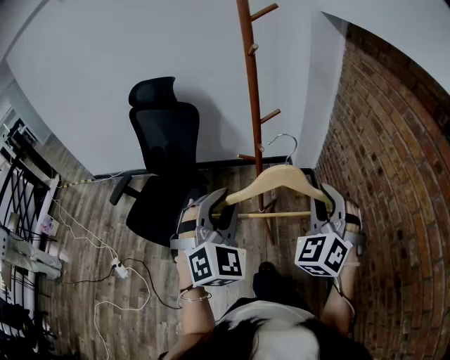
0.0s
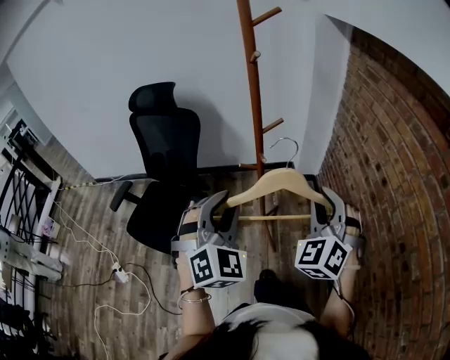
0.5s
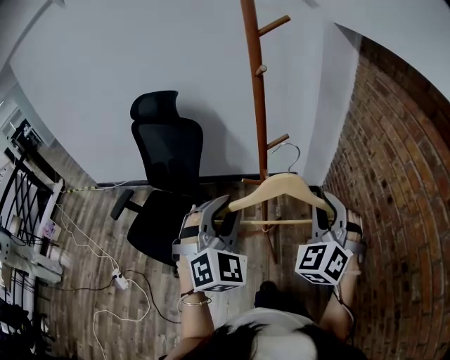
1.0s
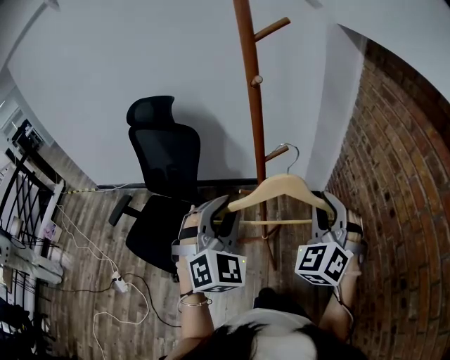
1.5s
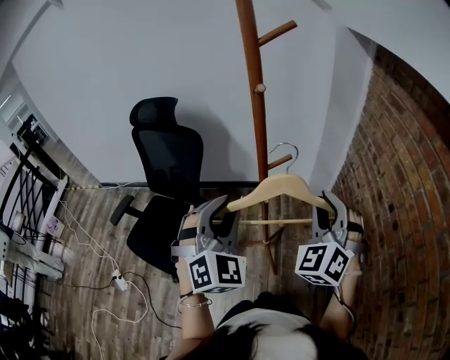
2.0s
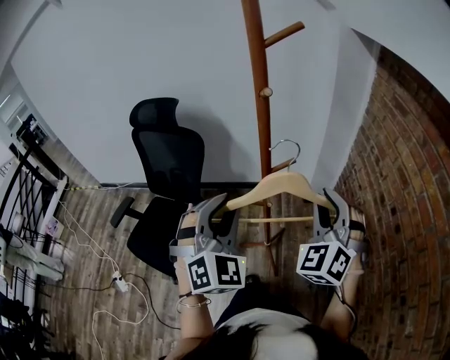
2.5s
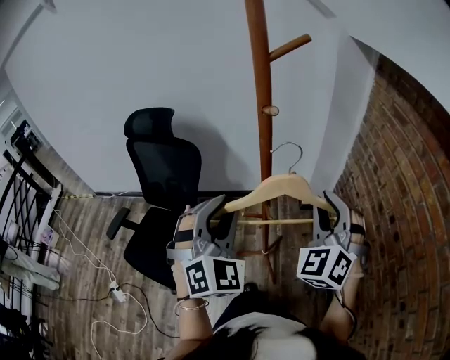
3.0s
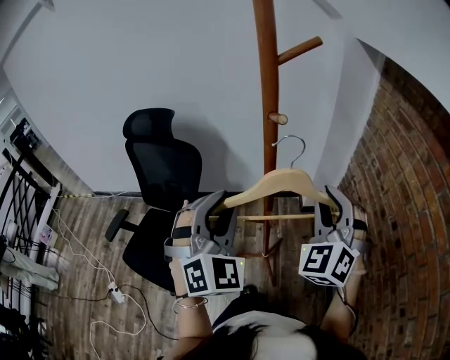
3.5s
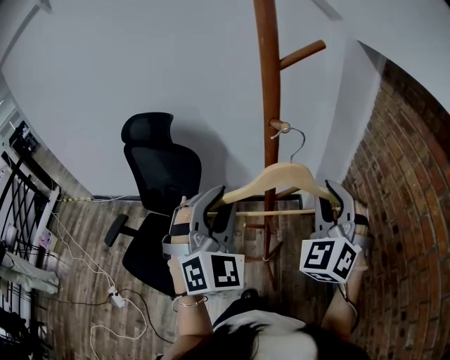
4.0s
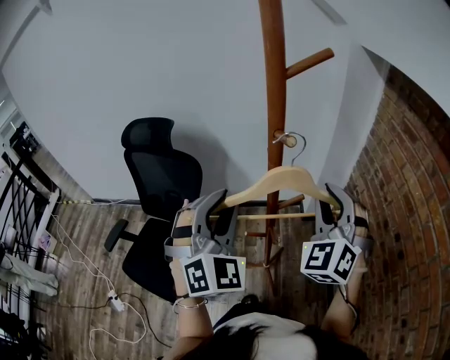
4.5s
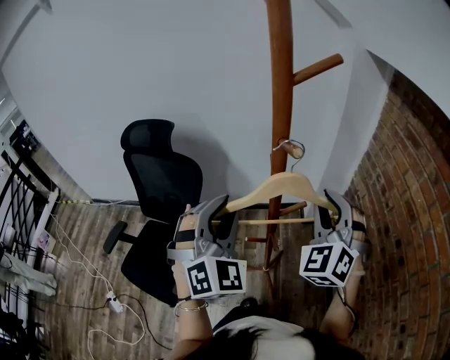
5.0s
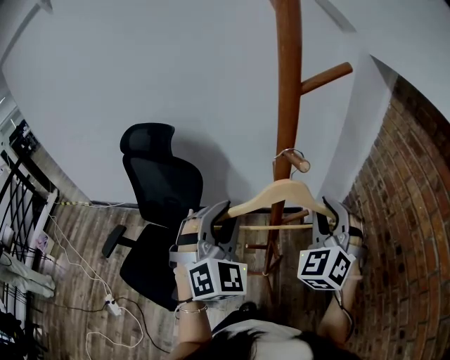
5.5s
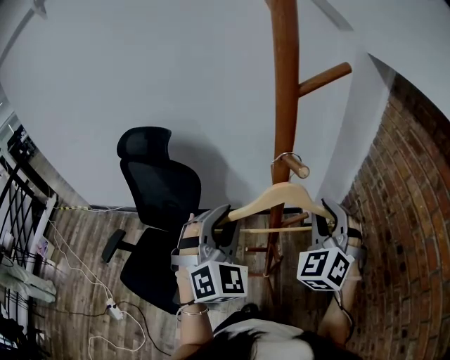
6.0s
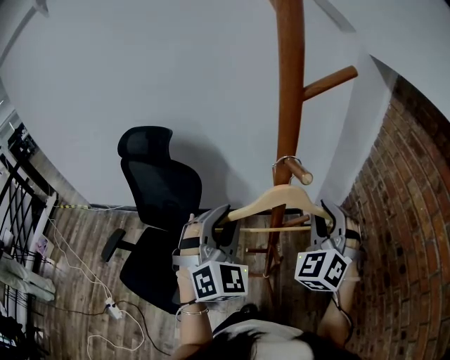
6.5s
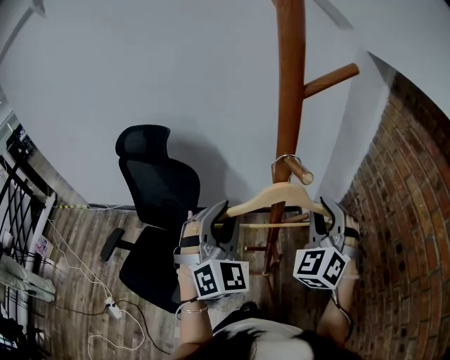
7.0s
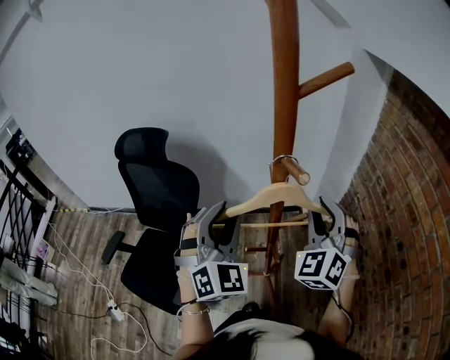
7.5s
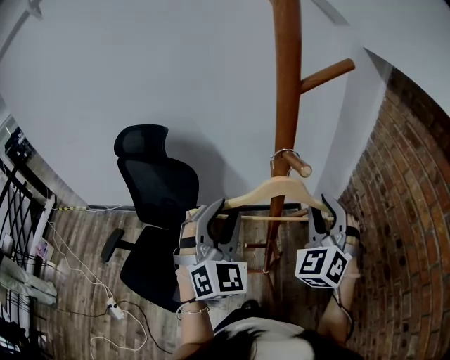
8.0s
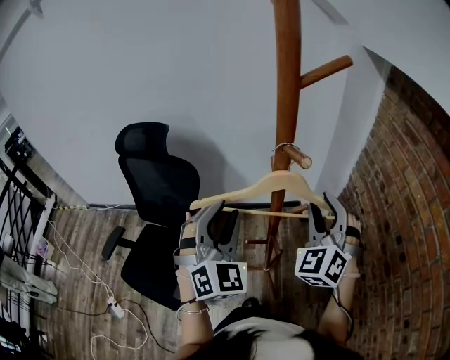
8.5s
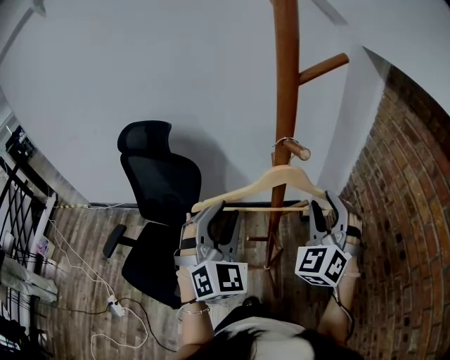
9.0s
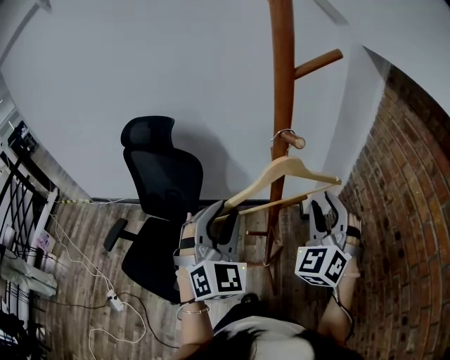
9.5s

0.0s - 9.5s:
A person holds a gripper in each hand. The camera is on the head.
0.0s - 2.0s: The two grippers go roughly 15 cm forward.
2.0s - 4.0s: The grippers both shift forward and upward by about 10 cm.
4.0s - 5.5s: The two grippers go some 5 cm forward.
5.5s - 7.5s: There are only small adjustments of the grippers.
7.5s - 9.5s: The left gripper is displaced backward by some 5 cm.

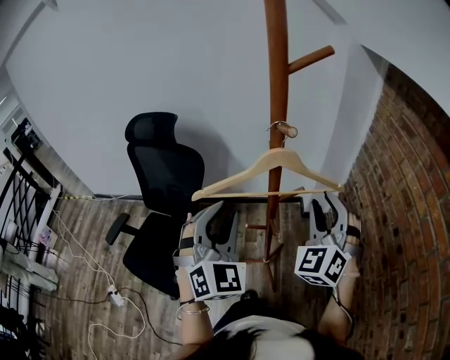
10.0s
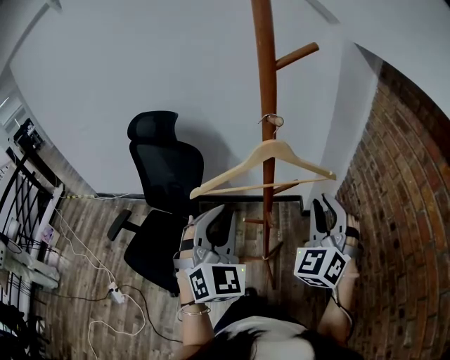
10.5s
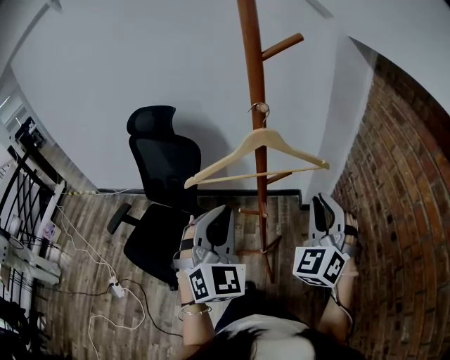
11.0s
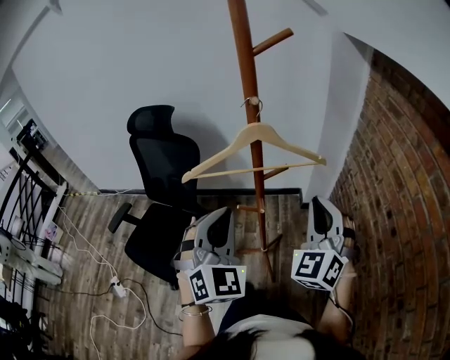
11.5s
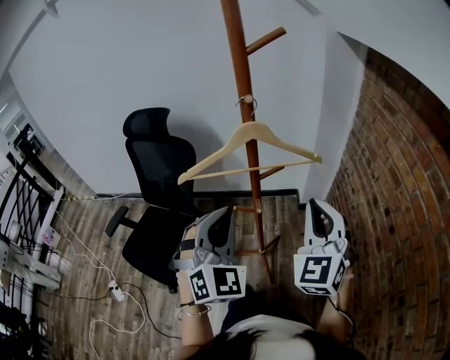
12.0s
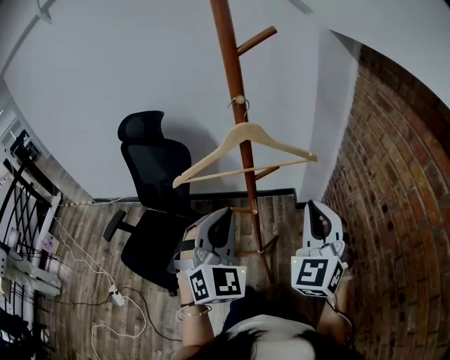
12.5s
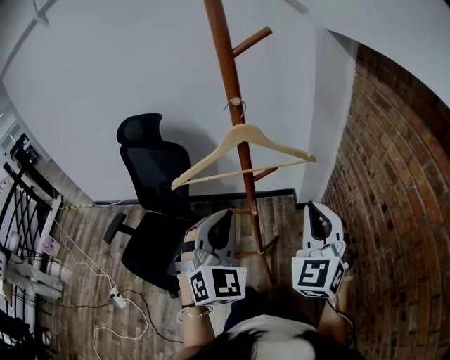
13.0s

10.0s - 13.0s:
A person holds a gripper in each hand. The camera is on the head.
10.0s - 11.5s: The left gripper goes roughly 10 cm backward and to the right, and closes up, while the right gripper shifts roughly 10 cm backward, and closes its fingers.
11.5s - 13.0s: The grippers make only small movements.

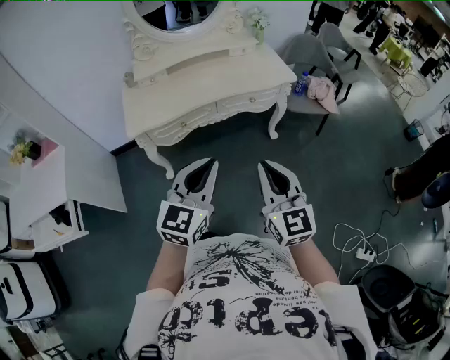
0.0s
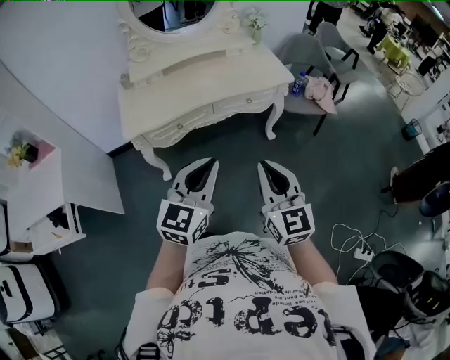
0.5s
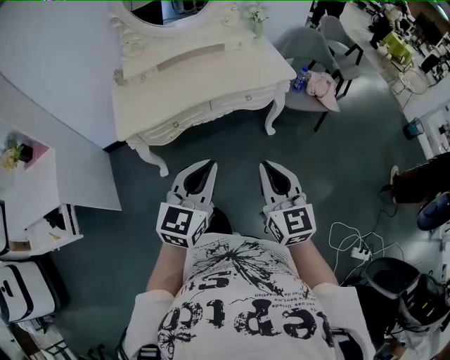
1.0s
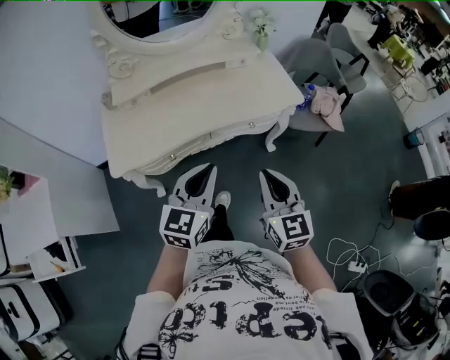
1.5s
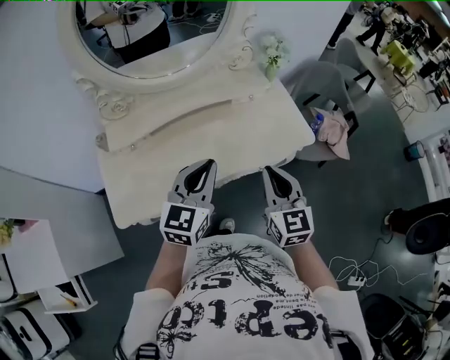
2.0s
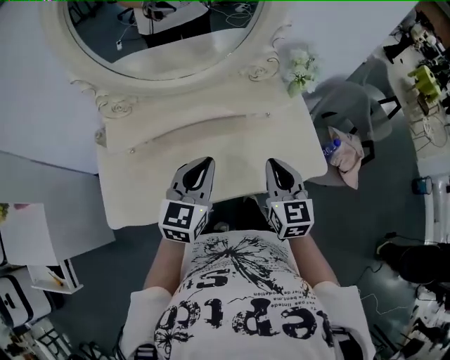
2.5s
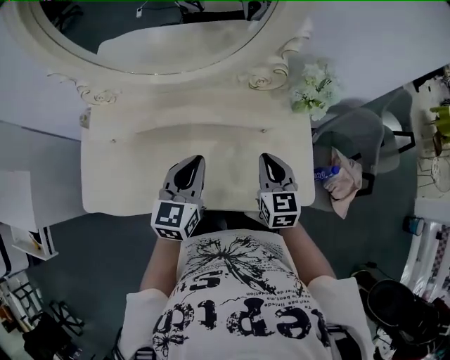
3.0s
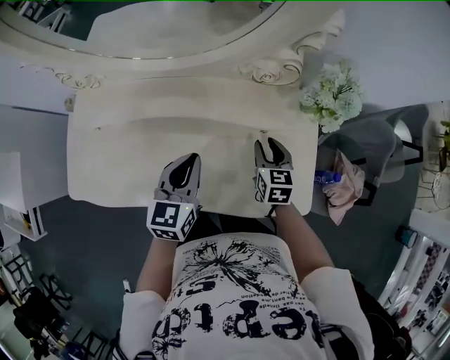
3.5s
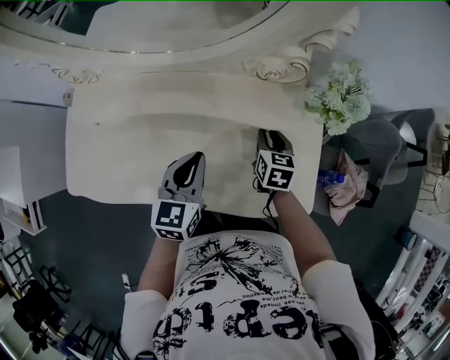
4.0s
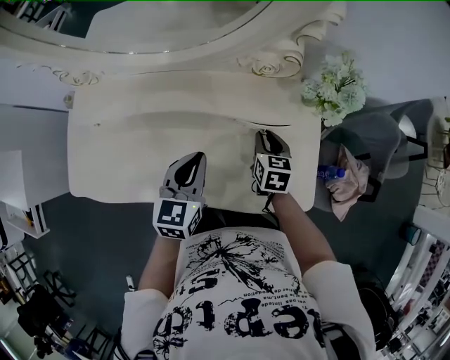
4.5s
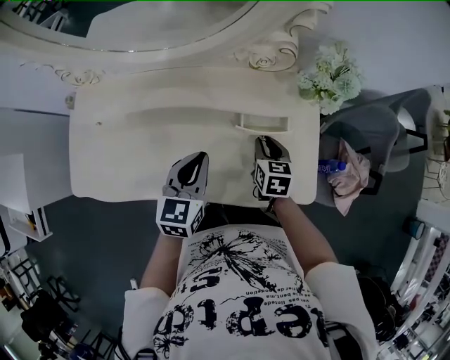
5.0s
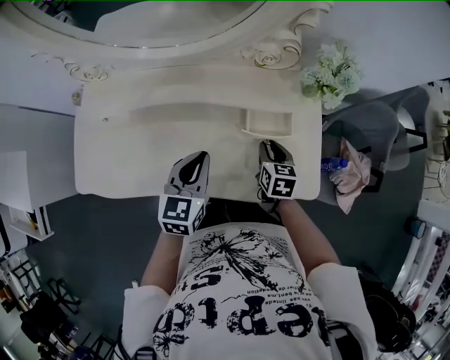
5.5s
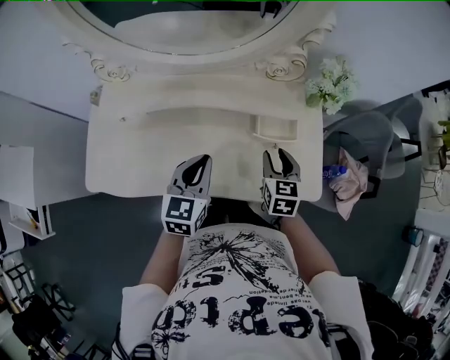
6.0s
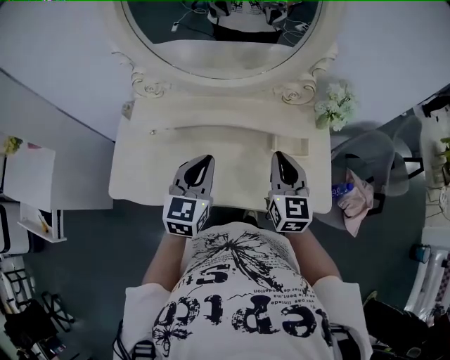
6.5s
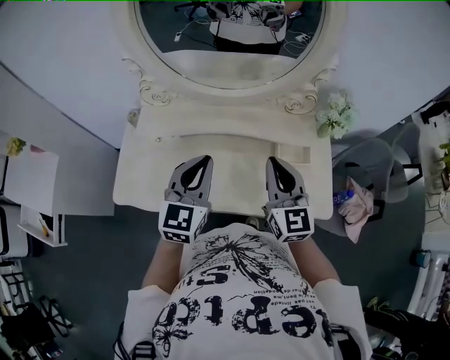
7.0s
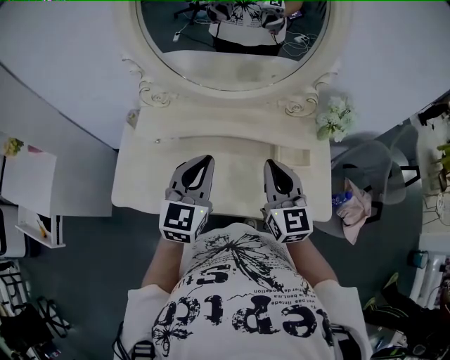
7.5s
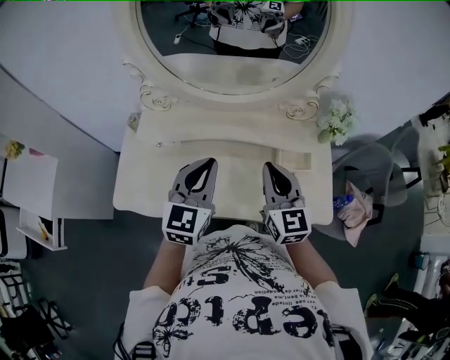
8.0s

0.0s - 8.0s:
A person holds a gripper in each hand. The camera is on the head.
0.0s - 2.0s: The two grippers travel together, forward, some 50 cm.
2.0s - 4.0s: The left gripper goes about 30 cm forward and downward, and swivels roughly 40 degrees, while the right gripper is displaced forward and downward by about 50 cm, rotates roughly 30 degrees, and opens its fingers.
4.0s - 6.0s: The right gripper moves backward and upward, some 15 cm, while the left gripper travels backward by about 5 cm.
6.0s - 8.0s: Both grippers travel together upward and to the left, approximately 20 cm. The right gripper changes its angle by about 30 degrees, and closes.

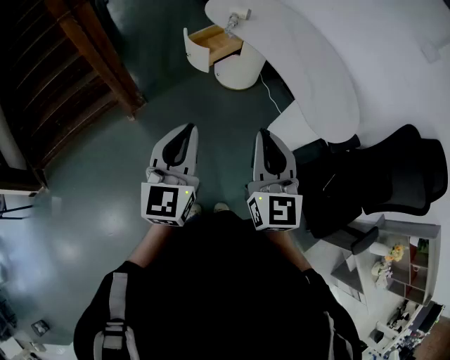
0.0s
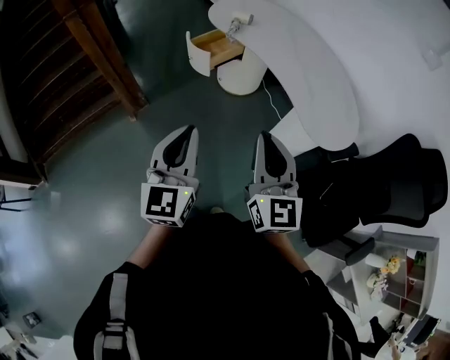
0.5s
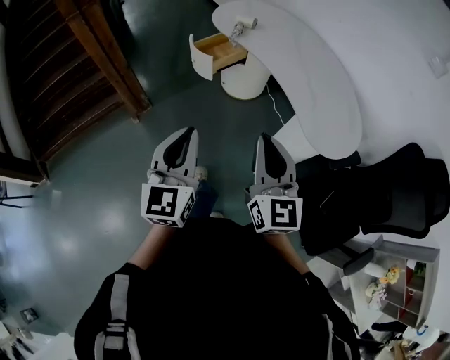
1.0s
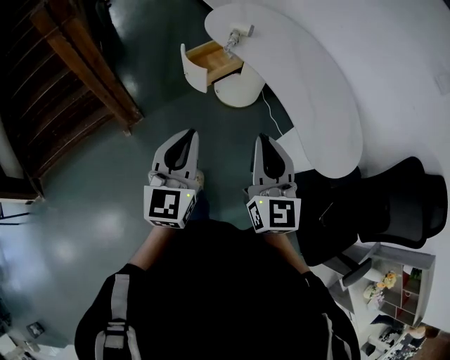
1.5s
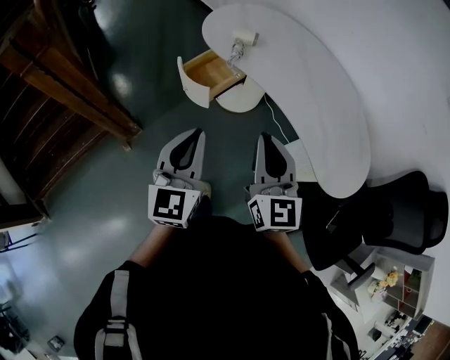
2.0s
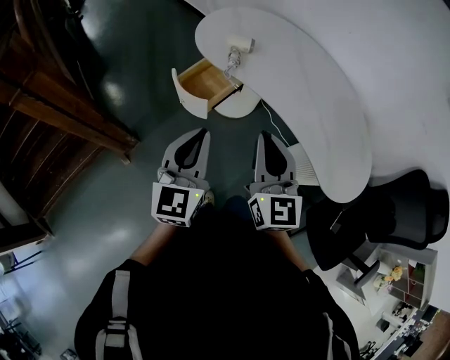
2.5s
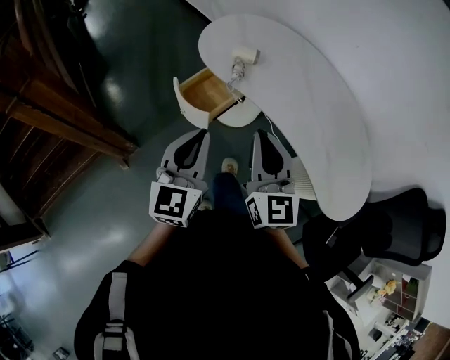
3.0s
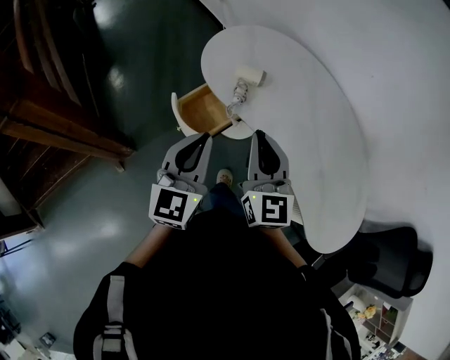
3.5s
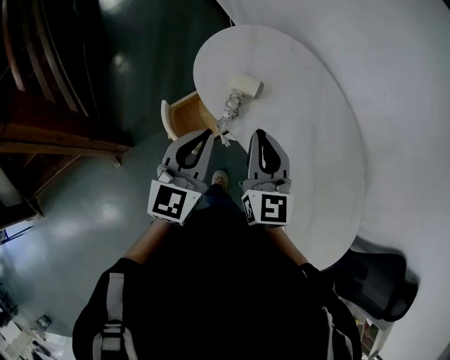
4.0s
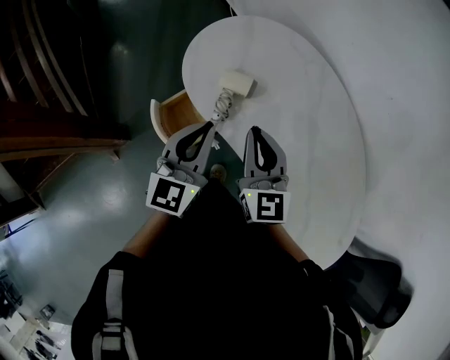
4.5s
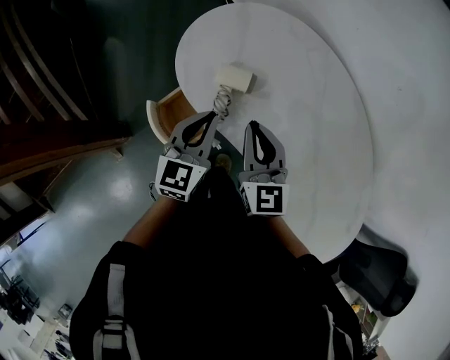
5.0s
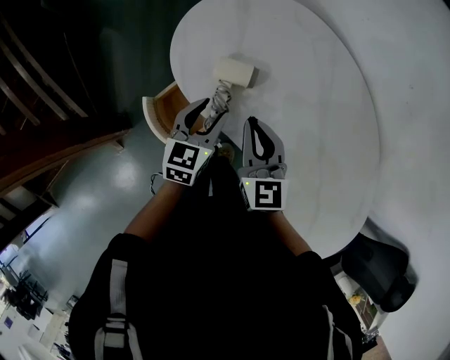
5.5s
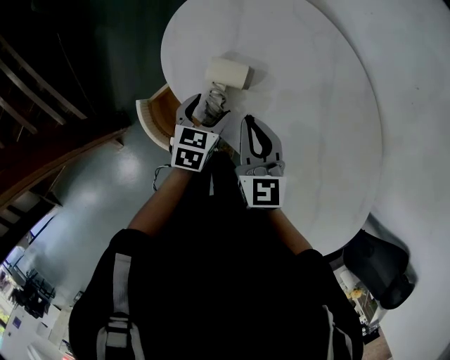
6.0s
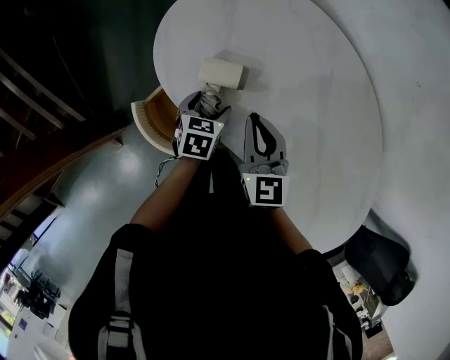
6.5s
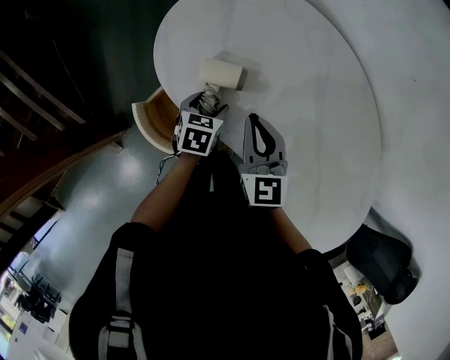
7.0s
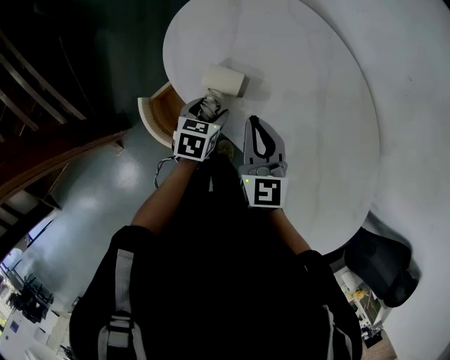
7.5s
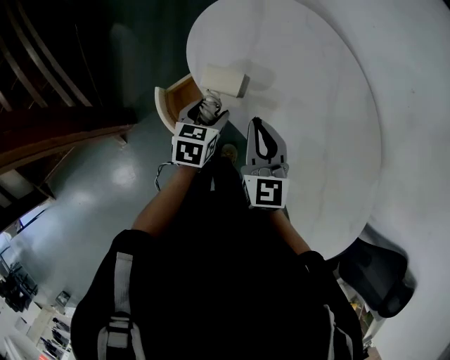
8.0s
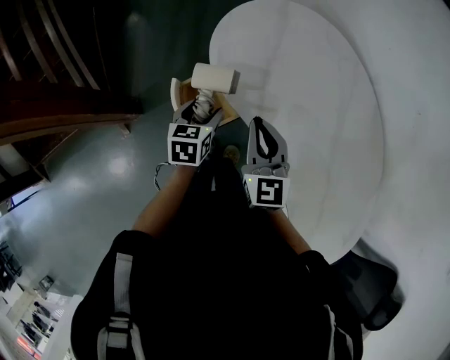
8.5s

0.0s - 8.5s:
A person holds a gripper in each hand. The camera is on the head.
0.0s - 2.0s: Both grippers move forward, some 30 cm.
2.0s - 4.0s: The two grippers go roughly 35 cm forward.
4.0s - 6.5s: The right gripper travels downward and forward by about 20 cm, and rotates approximately 20 degrees, while the left gripper moves downward and forward, roughly 30 cm, tilts its fingers roughly 50 degrees downward, and opens.
6.5s - 8.5s: The right gripper heads to the left and backward, covering about 10 cm. The left gripper shifts some 15 cm to the left, backward and upward, and swivels approximately 20 degrees.
